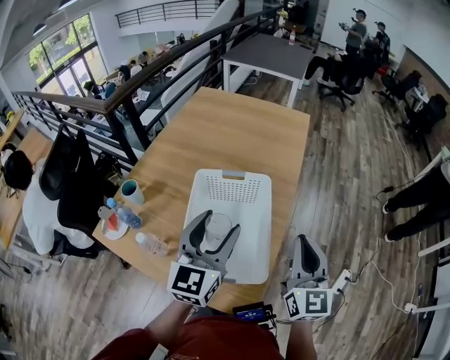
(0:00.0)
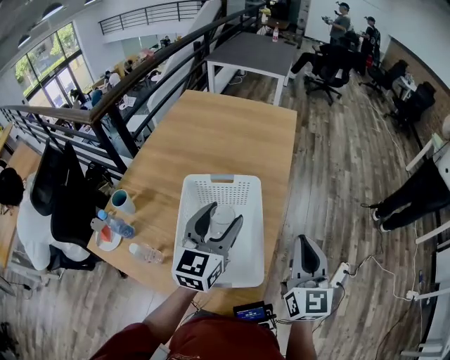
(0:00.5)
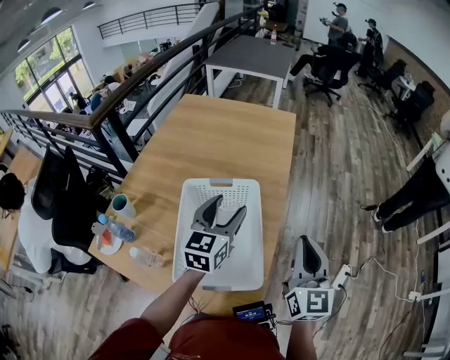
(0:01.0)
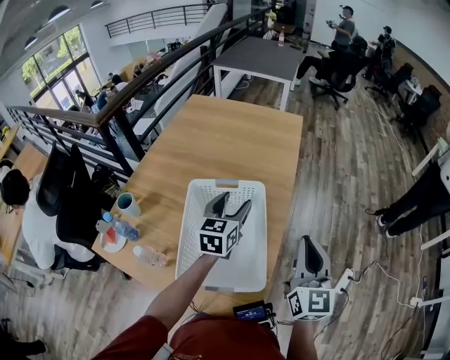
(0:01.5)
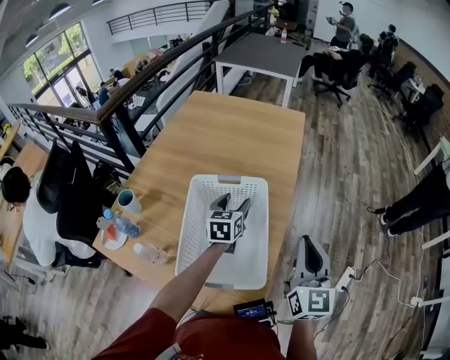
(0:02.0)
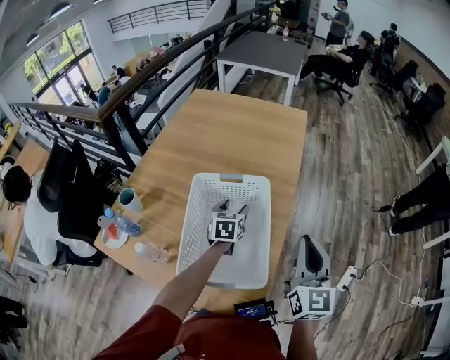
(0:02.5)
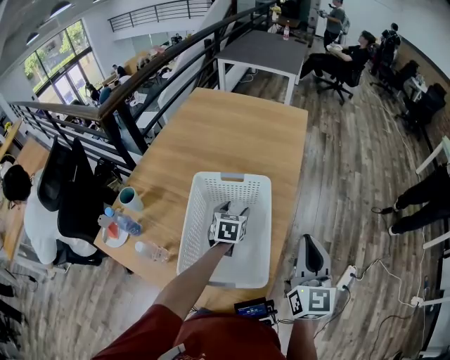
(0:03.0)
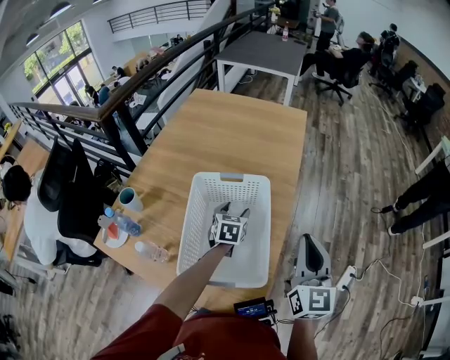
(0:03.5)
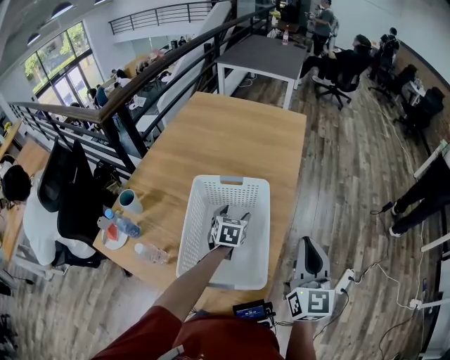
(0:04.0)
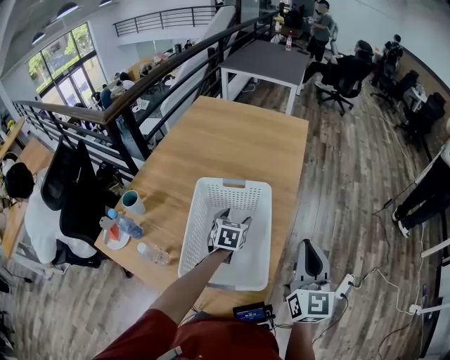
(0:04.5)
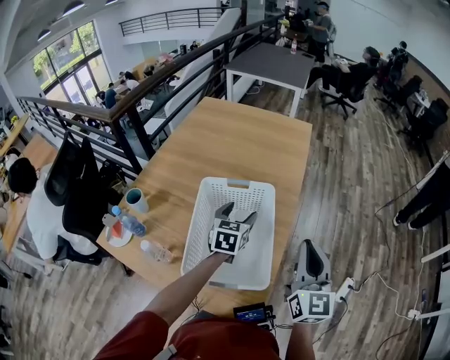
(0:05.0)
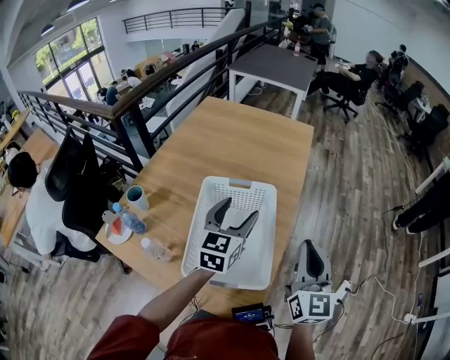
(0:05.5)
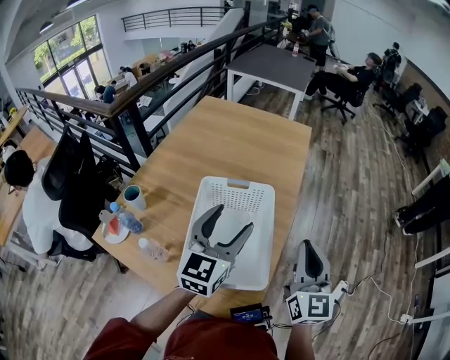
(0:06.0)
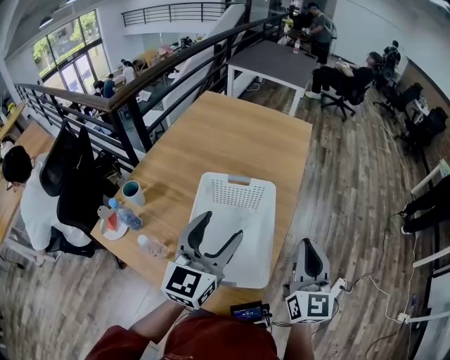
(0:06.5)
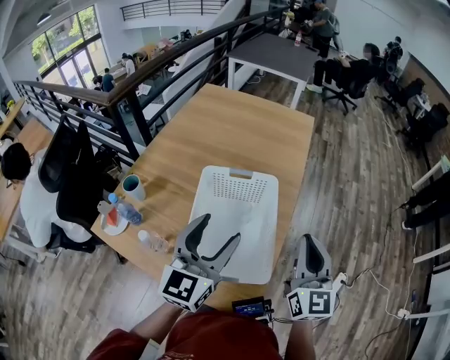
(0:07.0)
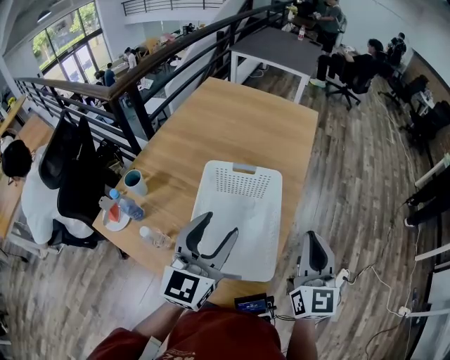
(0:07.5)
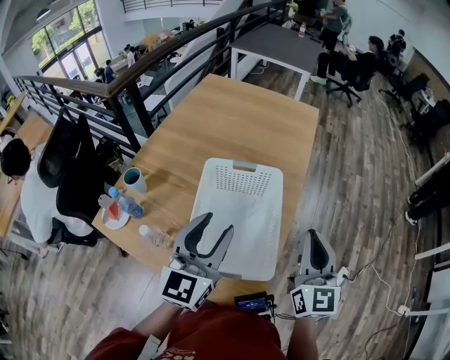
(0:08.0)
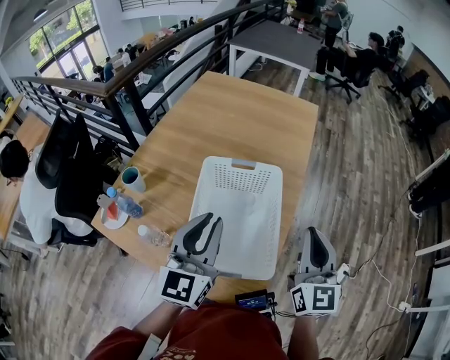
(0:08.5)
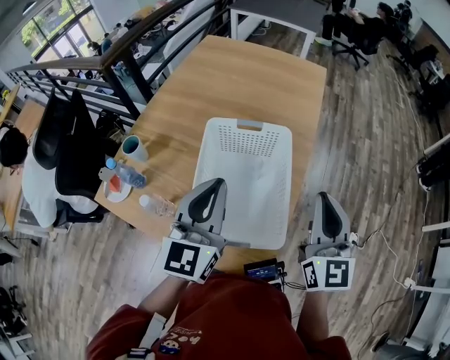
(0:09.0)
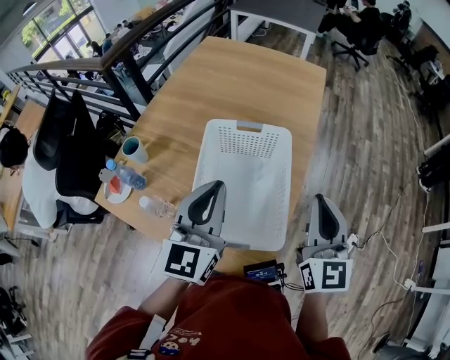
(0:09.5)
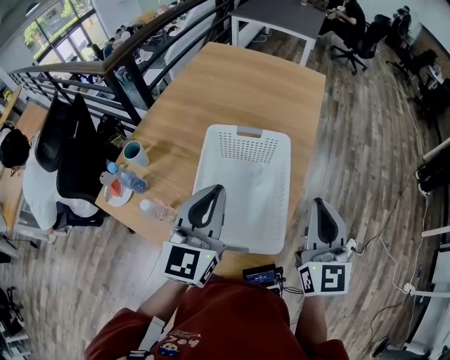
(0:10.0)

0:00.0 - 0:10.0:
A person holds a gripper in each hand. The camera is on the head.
0:00.0 - 0:02.0: The left gripper heads downward and forward, covering approximately 25 cm, and changes its angle by roughly 30 degrees.
0:02.0 - 0:04.0: The left gripper goes roughly 10 cm downward.
0:04.0 - 0:06.0: The left gripper heads upward and backward, covering approximately 30 cm, and points its fingers approximately 40 degrees further upward.
0:06.0 - 0:08.0: The left gripper goes some 5 cm backward.
0:08.0 - 0:10.0: The left gripper closes up.

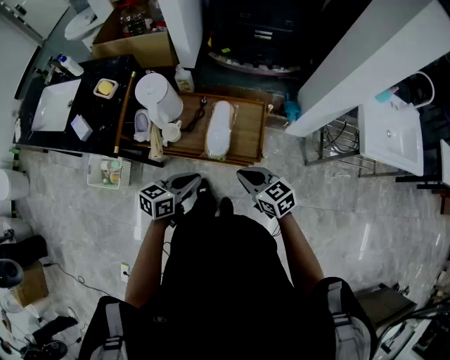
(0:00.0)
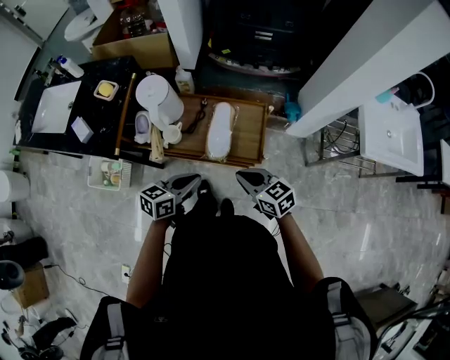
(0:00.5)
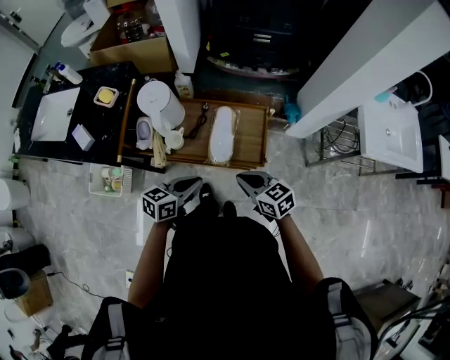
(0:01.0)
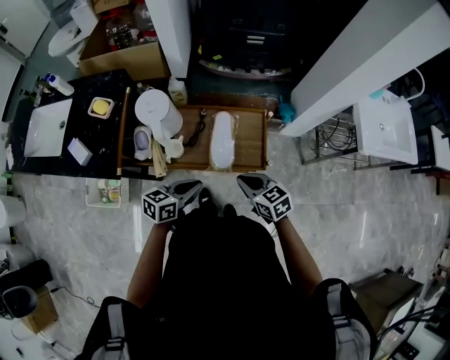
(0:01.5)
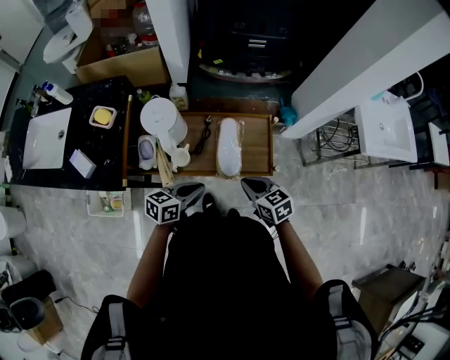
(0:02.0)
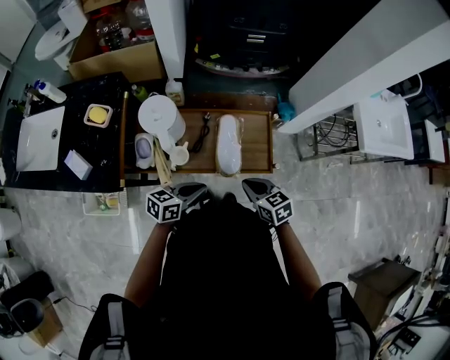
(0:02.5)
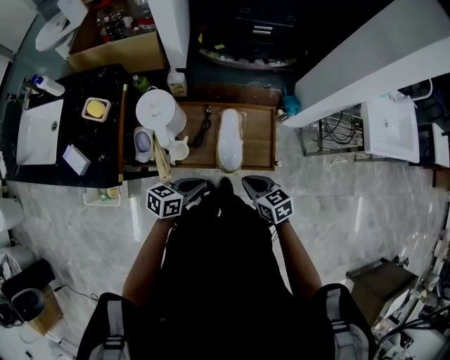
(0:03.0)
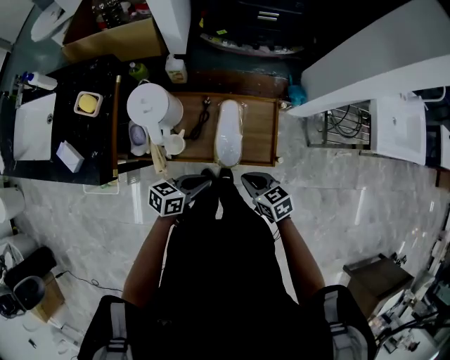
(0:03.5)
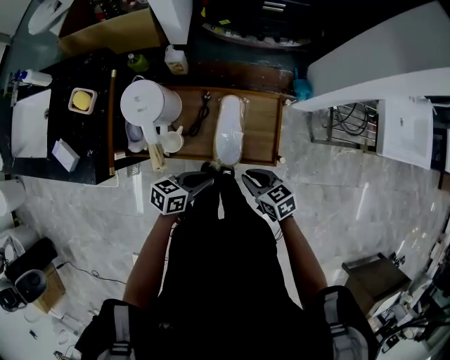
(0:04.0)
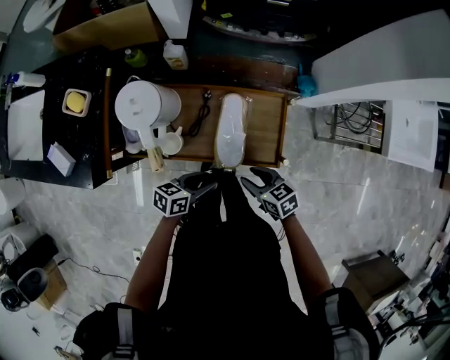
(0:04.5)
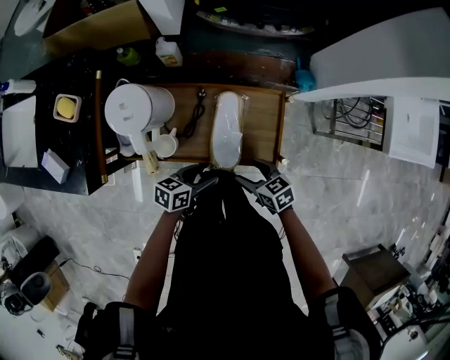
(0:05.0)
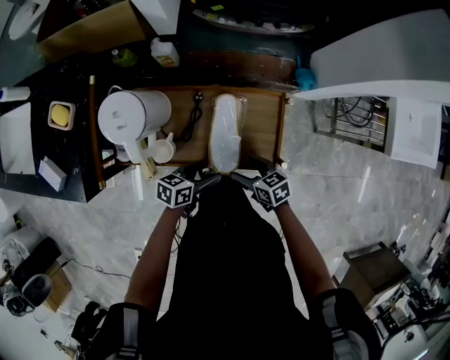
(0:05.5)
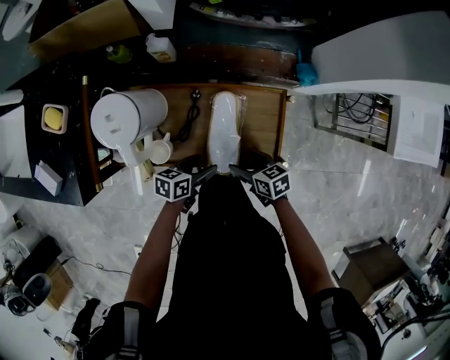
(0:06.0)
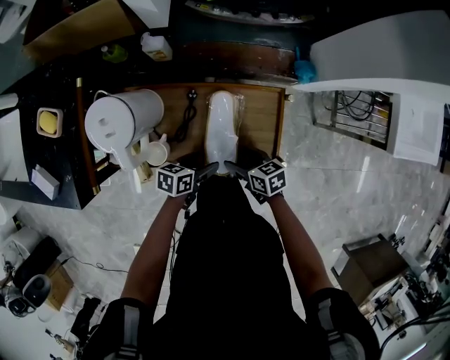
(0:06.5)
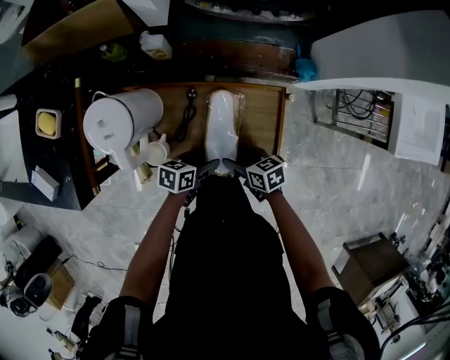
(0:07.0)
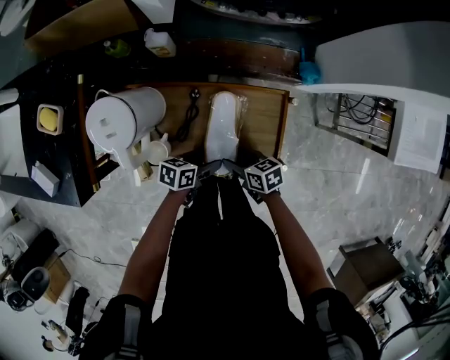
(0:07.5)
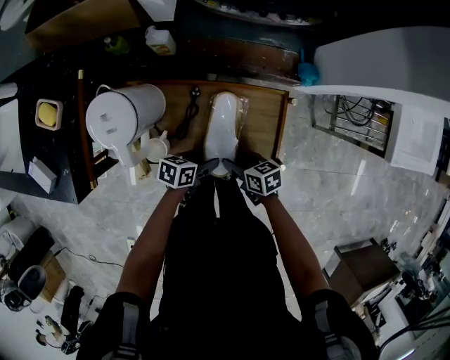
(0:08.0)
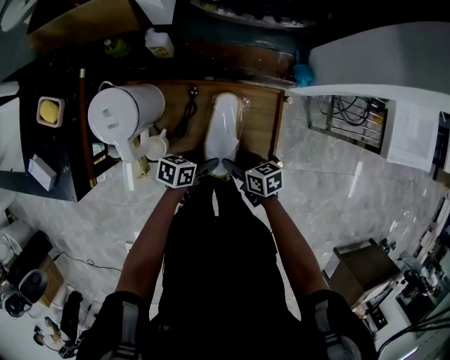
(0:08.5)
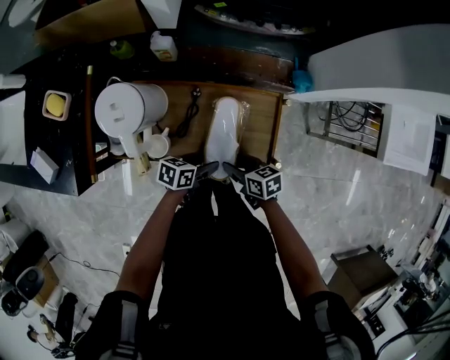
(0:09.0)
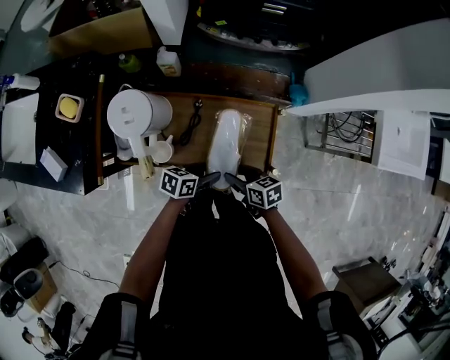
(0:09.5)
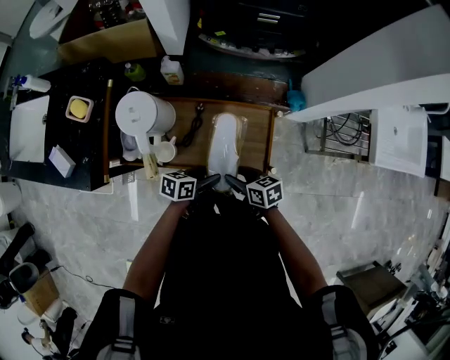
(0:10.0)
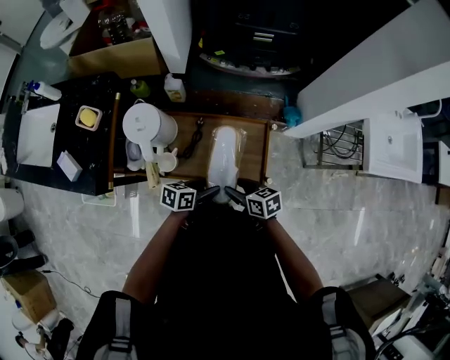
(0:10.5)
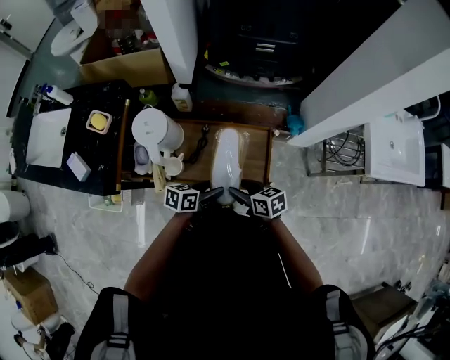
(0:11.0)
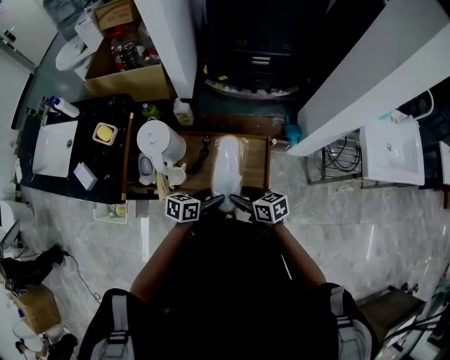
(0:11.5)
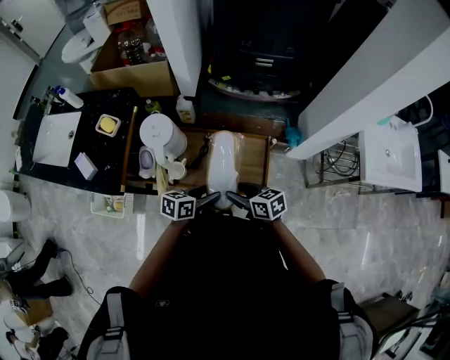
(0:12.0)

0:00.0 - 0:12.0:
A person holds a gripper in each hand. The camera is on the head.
0:00.0 - 0:02.0: Both grippers travel together to the left and forward, approximately 10 cm.
0:02.0 - 0:04.0: The grippers both shift downward by some 5 cm.
0:04.0 - 0:06.0: The two grippers go some 10 cm downward. The left gripper opens, while the right gripper opens.
0:06.0 - 0:08.0: The grippers make only small movements.
0:08.0 - 0:10.0: The grippers both shift upward by roughly 10 cm.
0:10.0 - 0:12.0: The grippers both shift upward by about 10 cm.

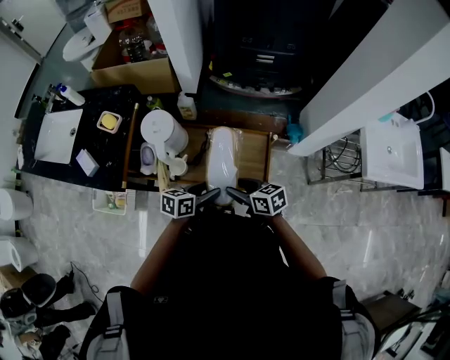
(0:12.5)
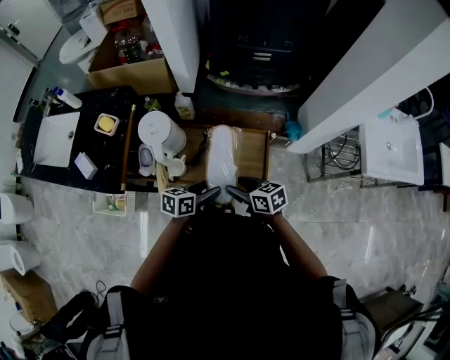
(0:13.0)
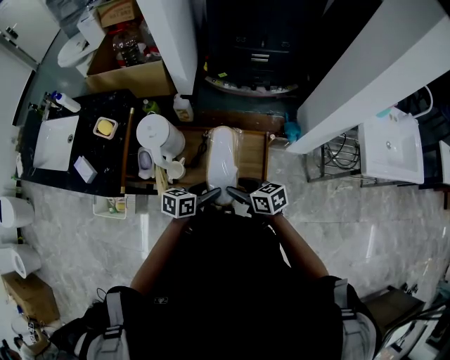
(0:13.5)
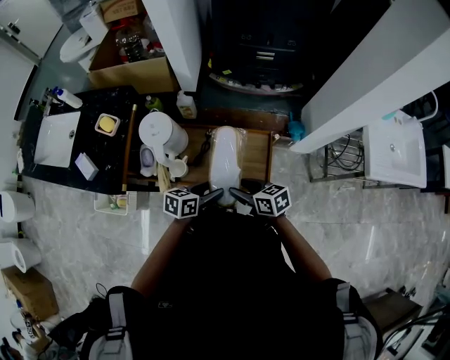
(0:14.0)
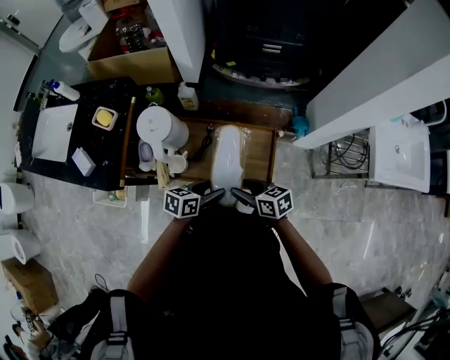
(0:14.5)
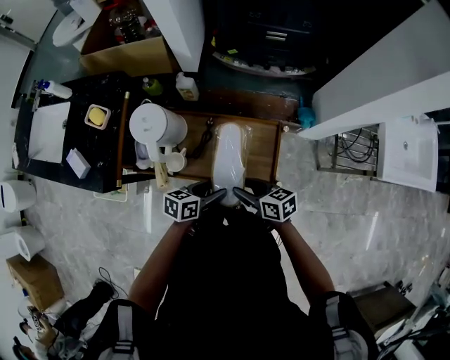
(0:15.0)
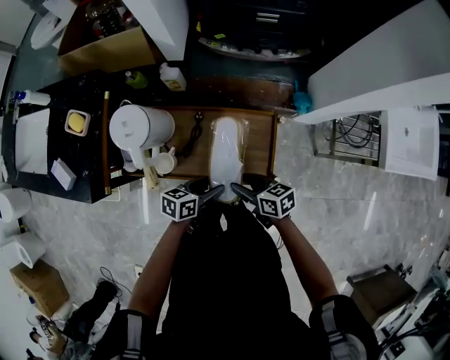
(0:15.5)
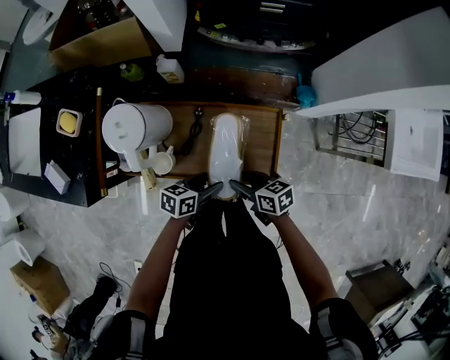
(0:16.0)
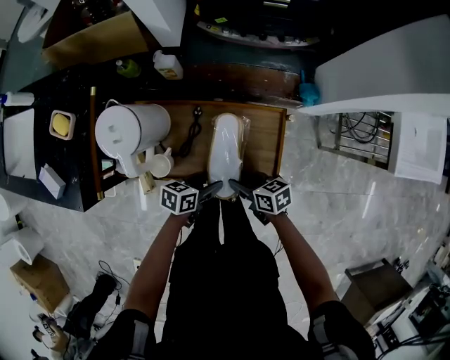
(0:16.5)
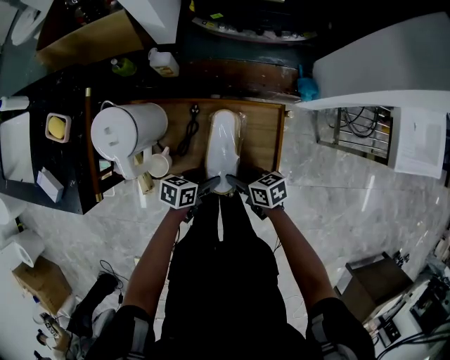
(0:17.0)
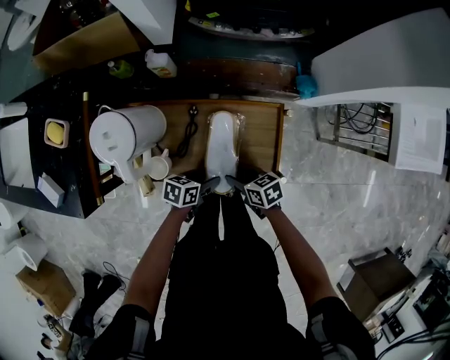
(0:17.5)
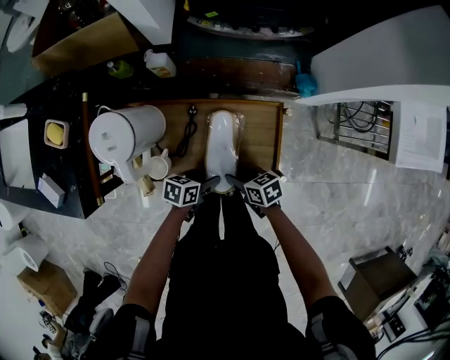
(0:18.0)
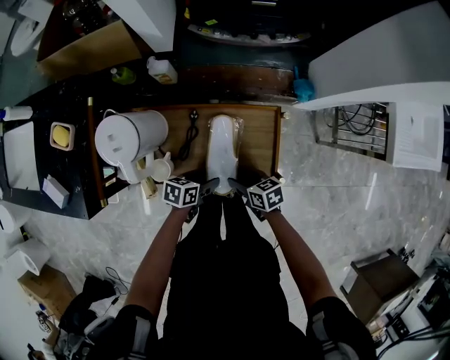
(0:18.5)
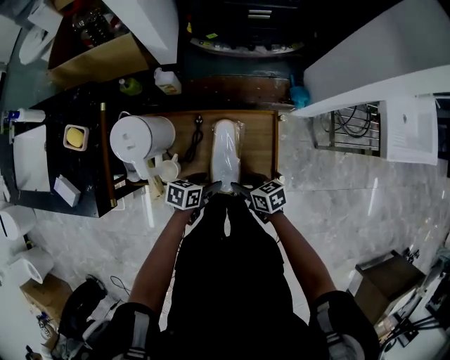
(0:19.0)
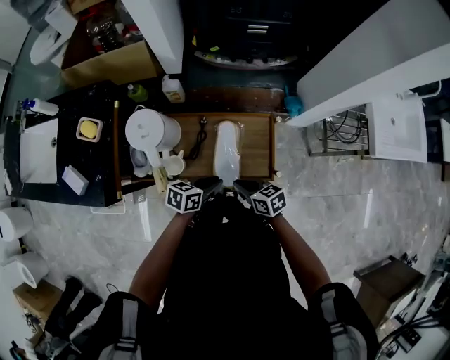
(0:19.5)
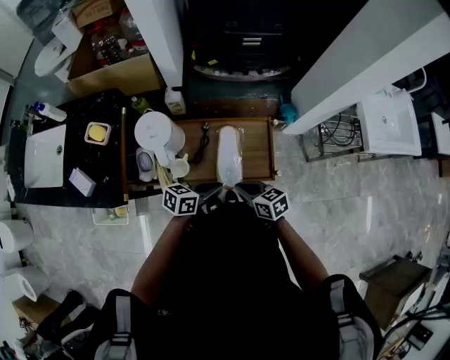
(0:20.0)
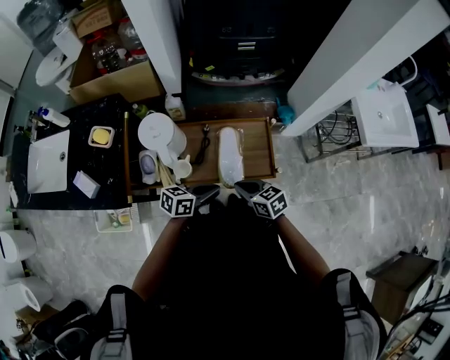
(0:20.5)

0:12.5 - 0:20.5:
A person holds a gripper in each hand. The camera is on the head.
0:12.5 - 0:14.5: There are only small adjustments of the grippers.
0:14.5 - 0:16.5: Both grippers travel together downward, some 15 cm.
0:16.5 - 0:18.5: The grippers stay close to where they were, moving slightly.
0:18.5 - 0:20.5: Both grippers move upward, about 15 cm. The right gripper closes up. The left gripper swivels roughly 30 degrees, and closes up.
